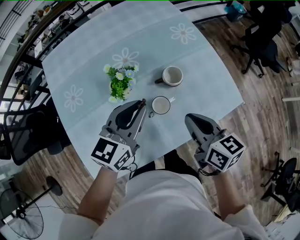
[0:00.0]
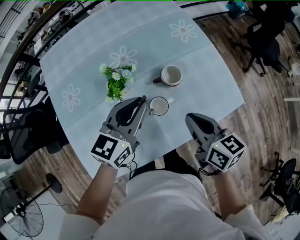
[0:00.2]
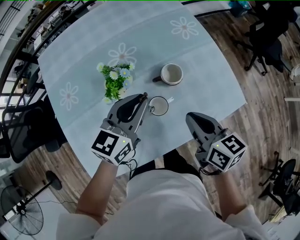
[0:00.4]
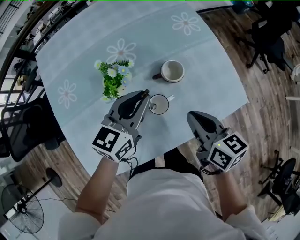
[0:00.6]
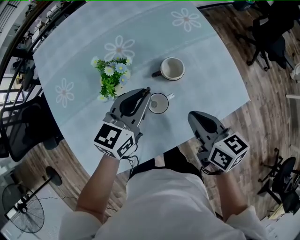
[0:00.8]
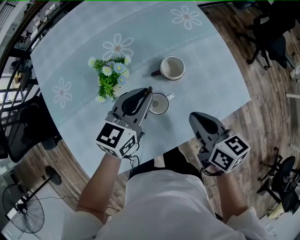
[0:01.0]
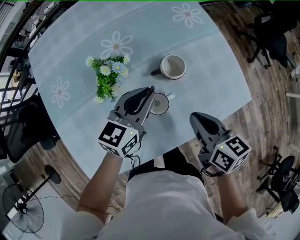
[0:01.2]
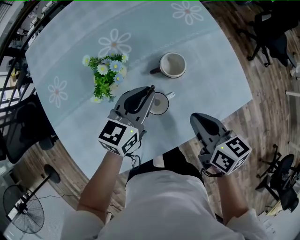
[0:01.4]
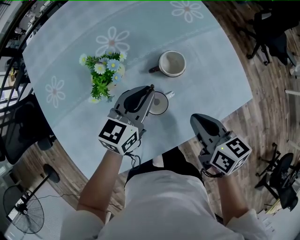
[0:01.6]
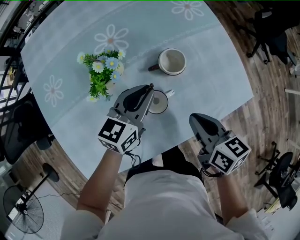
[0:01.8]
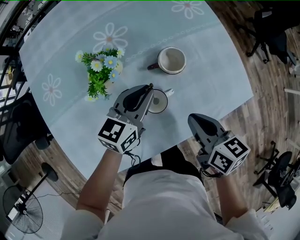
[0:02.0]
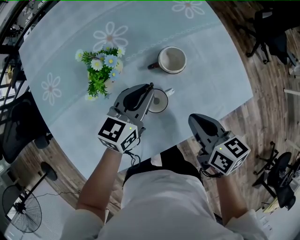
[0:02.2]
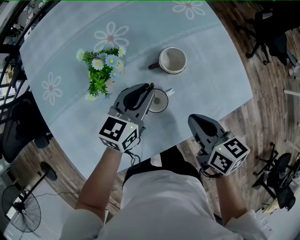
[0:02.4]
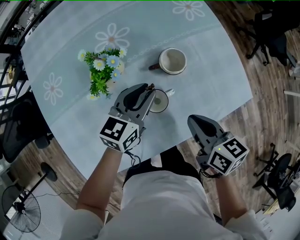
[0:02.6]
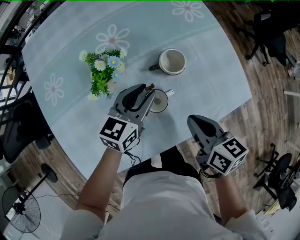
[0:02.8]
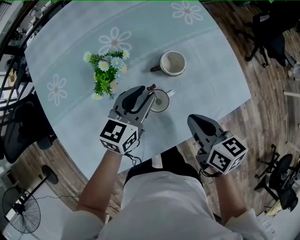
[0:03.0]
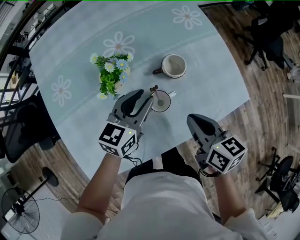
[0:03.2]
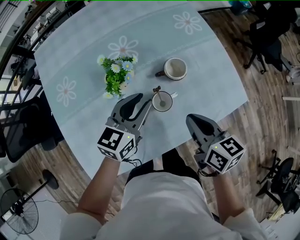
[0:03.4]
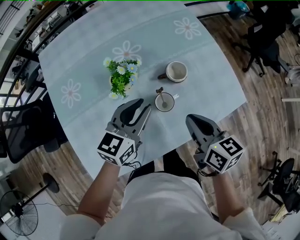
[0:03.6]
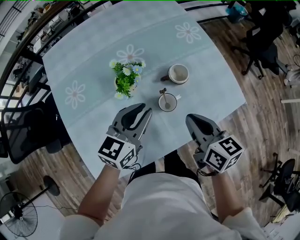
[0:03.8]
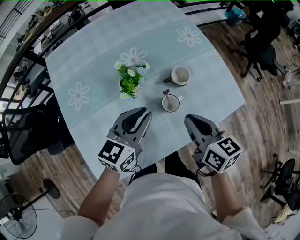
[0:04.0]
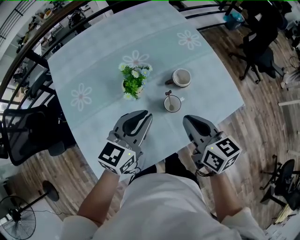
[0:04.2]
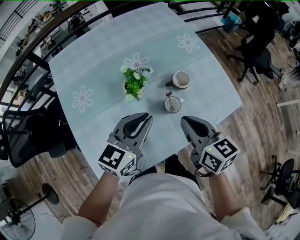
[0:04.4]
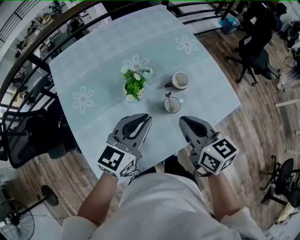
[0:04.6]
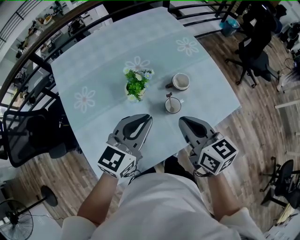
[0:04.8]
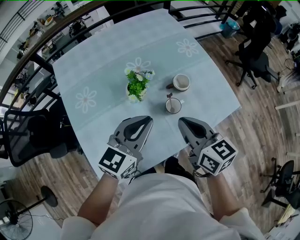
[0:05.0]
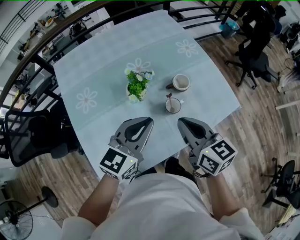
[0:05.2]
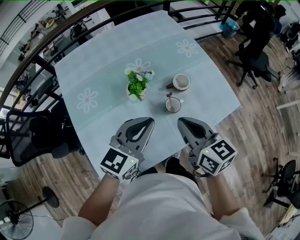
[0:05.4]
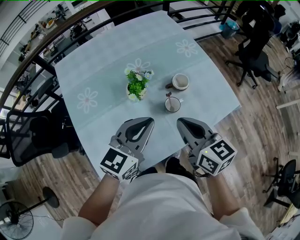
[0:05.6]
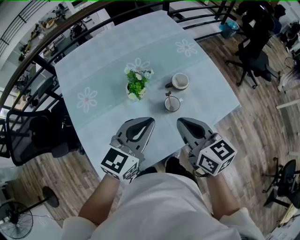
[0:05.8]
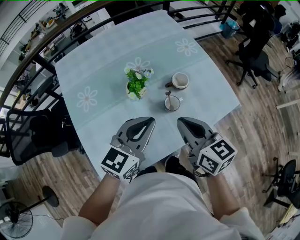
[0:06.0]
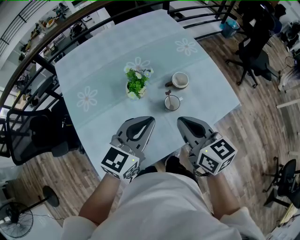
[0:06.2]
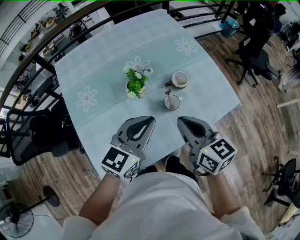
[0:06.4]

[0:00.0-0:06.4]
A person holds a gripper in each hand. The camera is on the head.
0.0 to 1.6 s: The two grippers go about 15 cm downward.
1.6 to 3.2 s: The grippers make only small movements.
3.2 to 4.8 s: The left gripper goes roughly 20 cm upward, backward and to the left, and closes its fingers; the right gripper is displaced upward and to the left by some 20 cm.
4.8 to 6.4 s: The grippers move only a little.

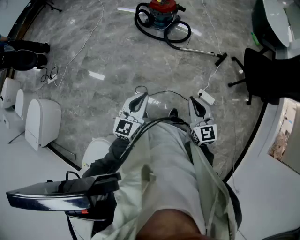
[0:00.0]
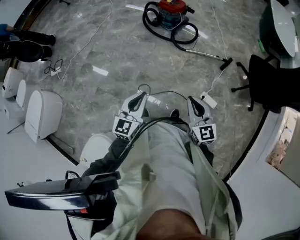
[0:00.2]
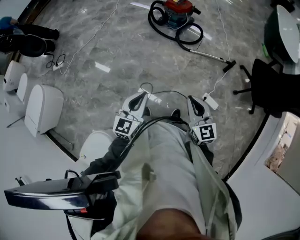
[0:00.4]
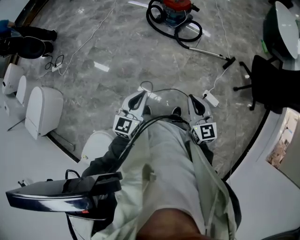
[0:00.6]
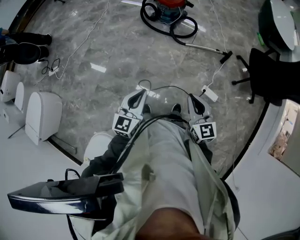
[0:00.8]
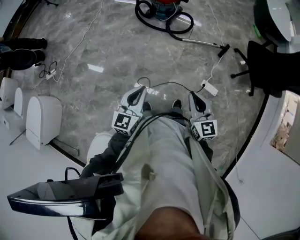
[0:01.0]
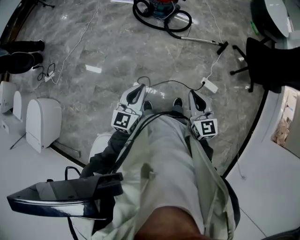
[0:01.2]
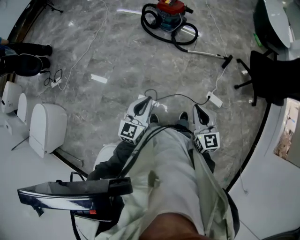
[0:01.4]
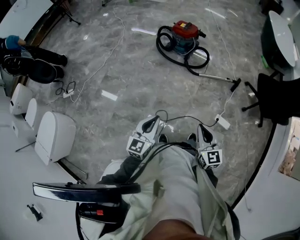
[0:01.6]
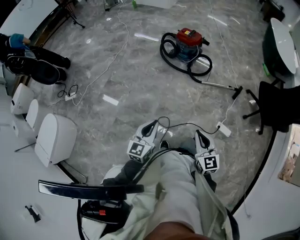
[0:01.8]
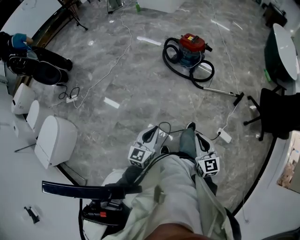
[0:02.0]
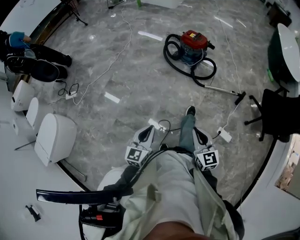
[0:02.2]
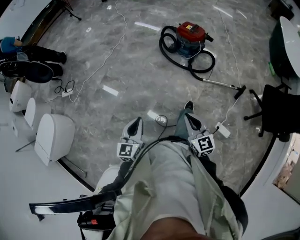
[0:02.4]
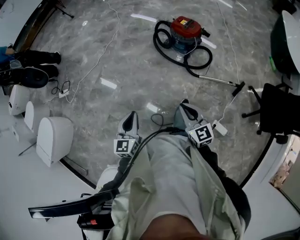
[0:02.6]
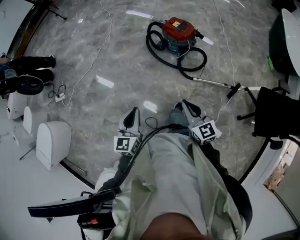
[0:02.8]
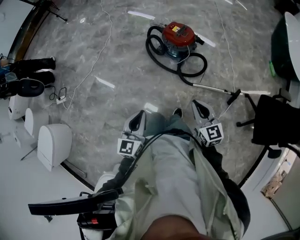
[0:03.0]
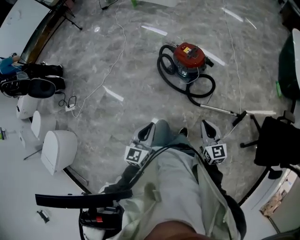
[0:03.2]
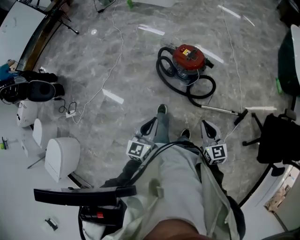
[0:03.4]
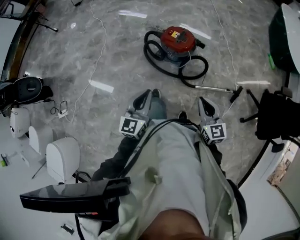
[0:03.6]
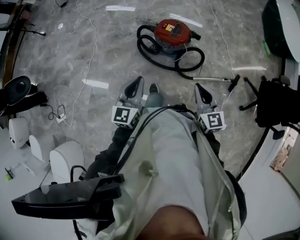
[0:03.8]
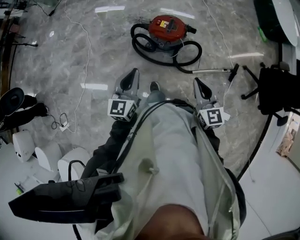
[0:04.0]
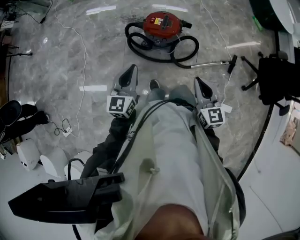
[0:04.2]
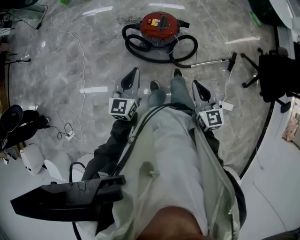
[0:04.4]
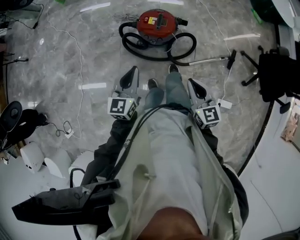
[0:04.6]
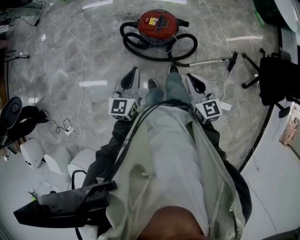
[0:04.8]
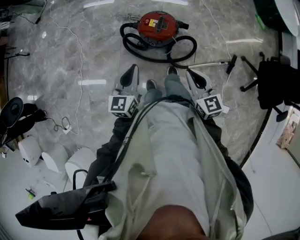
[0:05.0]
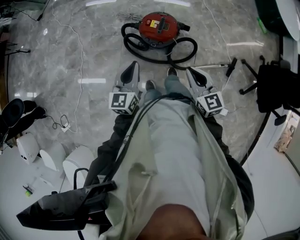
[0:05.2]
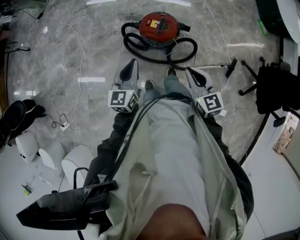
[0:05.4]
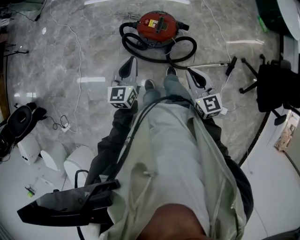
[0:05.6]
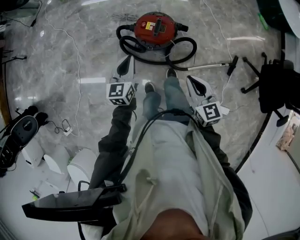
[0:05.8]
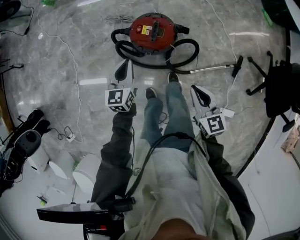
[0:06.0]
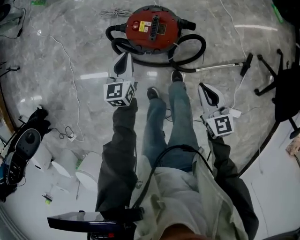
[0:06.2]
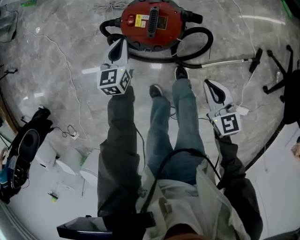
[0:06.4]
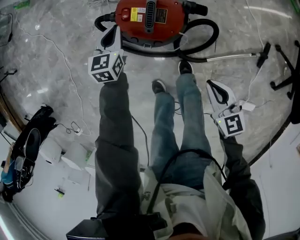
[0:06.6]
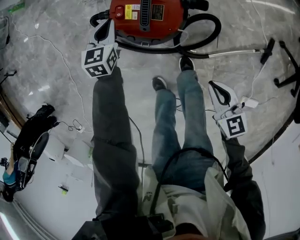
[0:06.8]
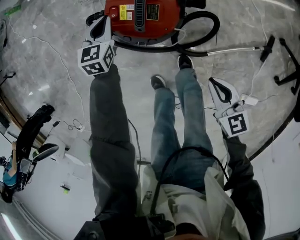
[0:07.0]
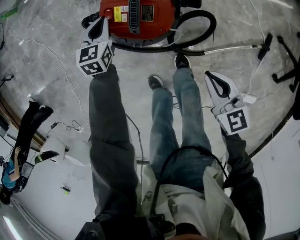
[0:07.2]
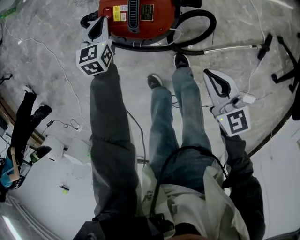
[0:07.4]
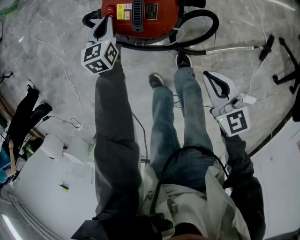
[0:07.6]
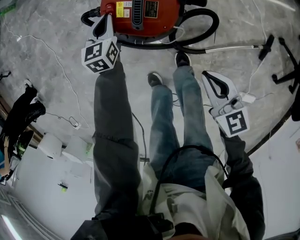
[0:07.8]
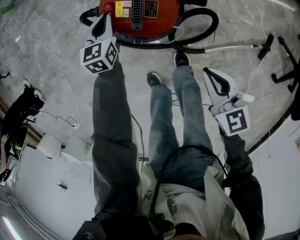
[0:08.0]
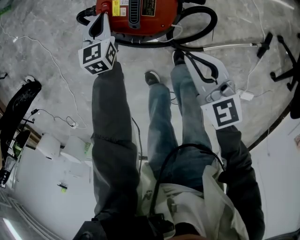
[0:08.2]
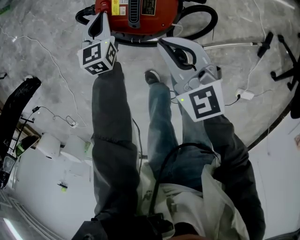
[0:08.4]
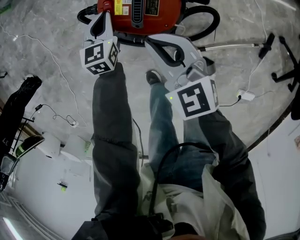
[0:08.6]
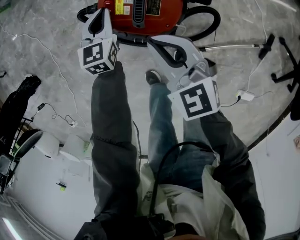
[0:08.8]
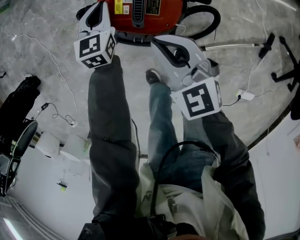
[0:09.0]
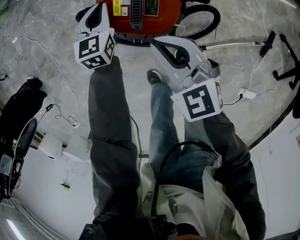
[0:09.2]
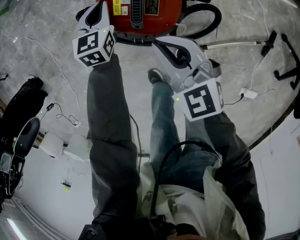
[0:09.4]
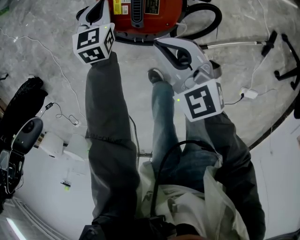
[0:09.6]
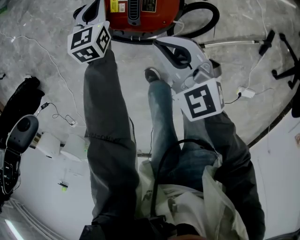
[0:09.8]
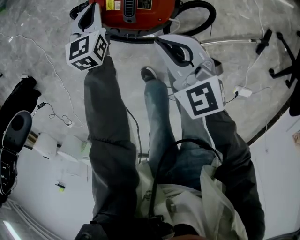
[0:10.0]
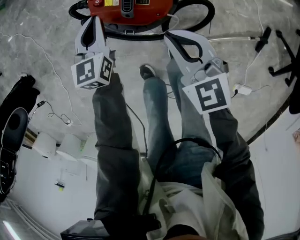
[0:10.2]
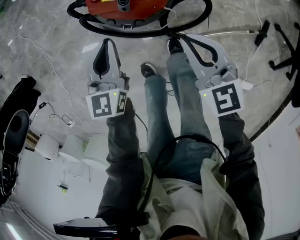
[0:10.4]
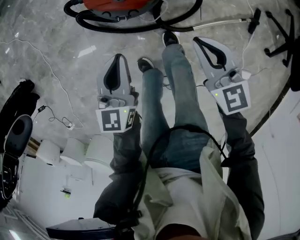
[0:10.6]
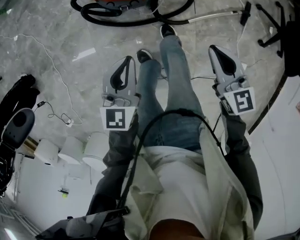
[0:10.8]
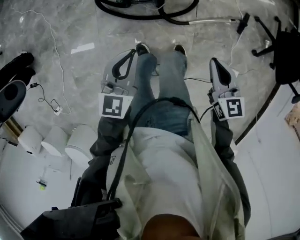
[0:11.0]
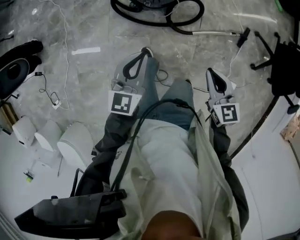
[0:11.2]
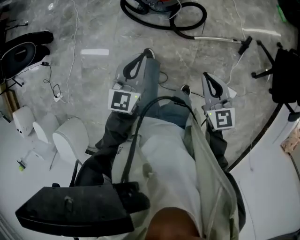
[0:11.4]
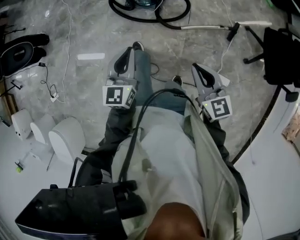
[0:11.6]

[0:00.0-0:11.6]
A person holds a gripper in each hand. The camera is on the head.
0.0 to 1.4 s: The two grippers go some 10 cm to the left.
1.4 to 2.8 s: Both grippers travel together forward, approximately 35 cm. The left gripper turns by approximately 20 degrees.
2.8 to 4.4 s: The right gripper shifts by about 25 cm, and turns by about 30 degrees. The left gripper ends up approximately 40 cm from where it was, and turns by roughly 30 degrees.
4.4 to 5.8 s: The grippers both shift forward and downward by approximately 15 cm.
5.8 to 7.2 s: The left gripper travels downward and forward by roughly 40 cm, and rotates approximately 20 degrees; the right gripper is displaced downward by approximately 30 cm.
7.2 to 8.8 s: The right gripper heads forward and to the left, covering about 20 cm, and swivels about 20 degrees.
8.8 to 10.2 s: The right gripper ends up about 5 cm from where it was, while the left gripper goes approximately 5 cm backward.
10.2 to 11.6 s: The two grippers travel together, backward, some 50 cm. Both grippers move upward, approximately 35 cm.

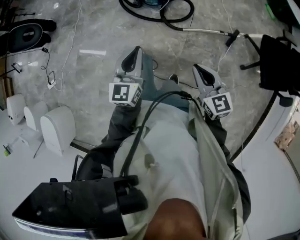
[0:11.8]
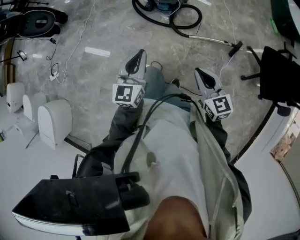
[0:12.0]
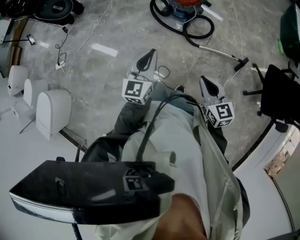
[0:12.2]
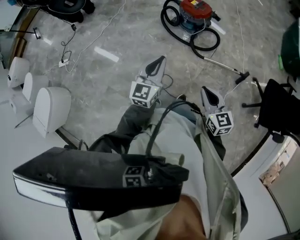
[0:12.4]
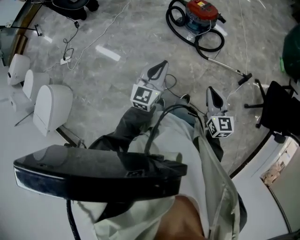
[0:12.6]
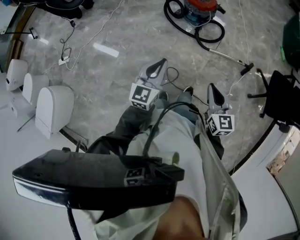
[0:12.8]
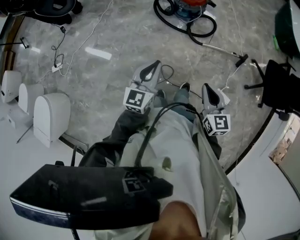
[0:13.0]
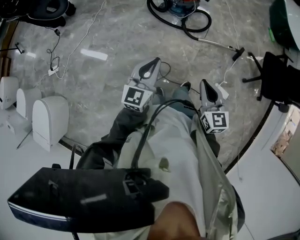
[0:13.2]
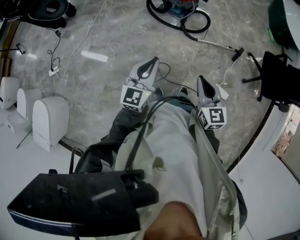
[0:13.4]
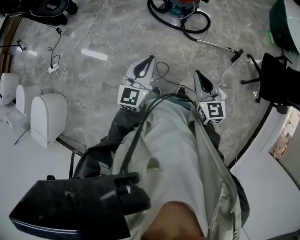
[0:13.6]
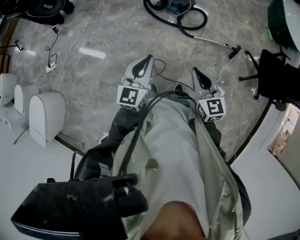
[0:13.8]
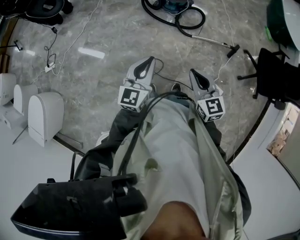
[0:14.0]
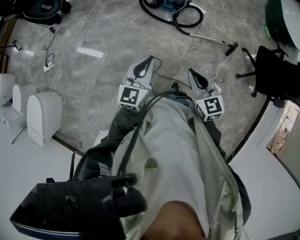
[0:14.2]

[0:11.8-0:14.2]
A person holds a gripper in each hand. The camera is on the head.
11.8 to 13.0 s: The grippers both shift to the left and backward by roughly 20 cm.
13.0 to 14.2 s: The left gripper moves to the right and backward, about 10 cm.

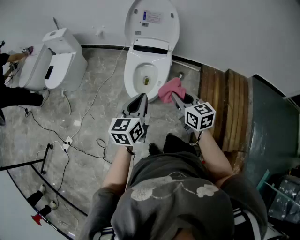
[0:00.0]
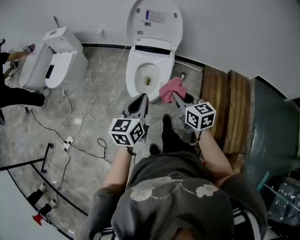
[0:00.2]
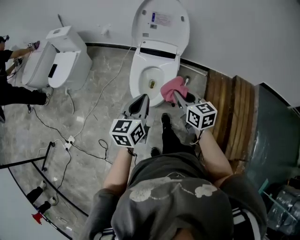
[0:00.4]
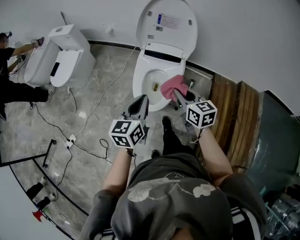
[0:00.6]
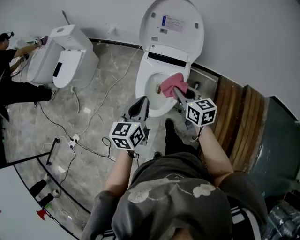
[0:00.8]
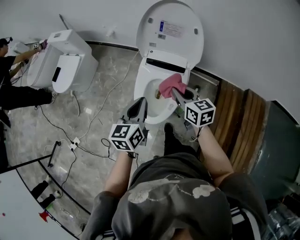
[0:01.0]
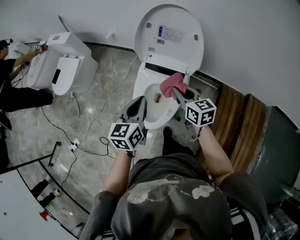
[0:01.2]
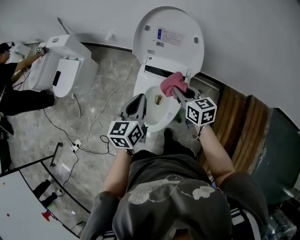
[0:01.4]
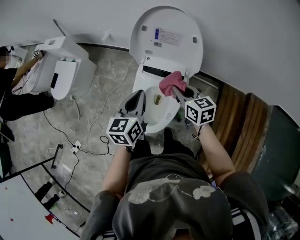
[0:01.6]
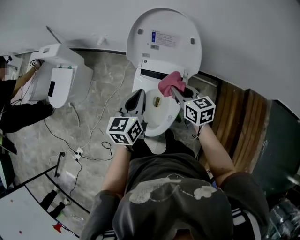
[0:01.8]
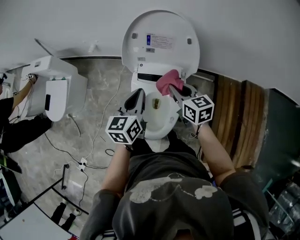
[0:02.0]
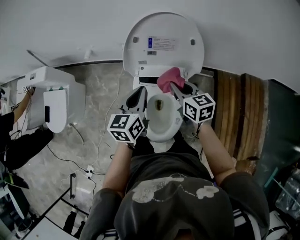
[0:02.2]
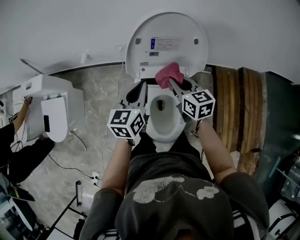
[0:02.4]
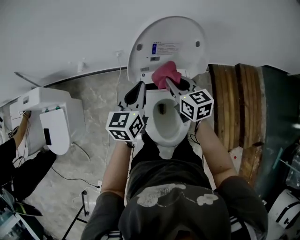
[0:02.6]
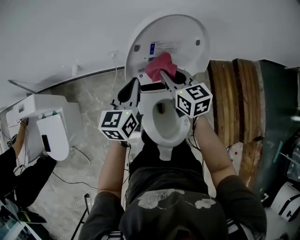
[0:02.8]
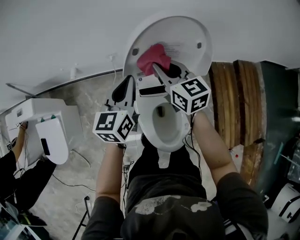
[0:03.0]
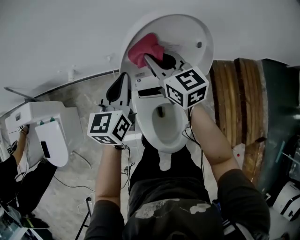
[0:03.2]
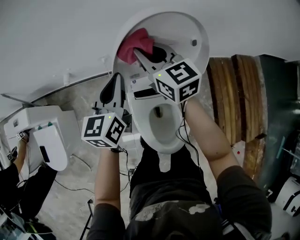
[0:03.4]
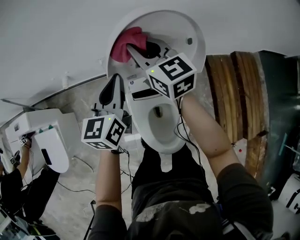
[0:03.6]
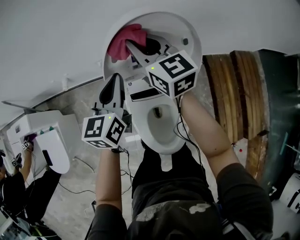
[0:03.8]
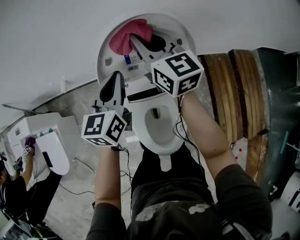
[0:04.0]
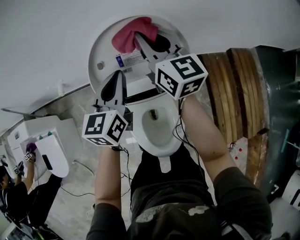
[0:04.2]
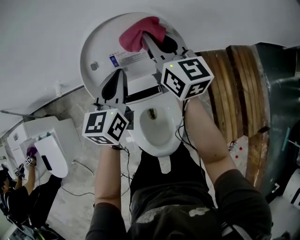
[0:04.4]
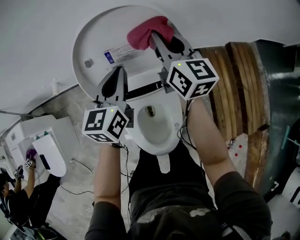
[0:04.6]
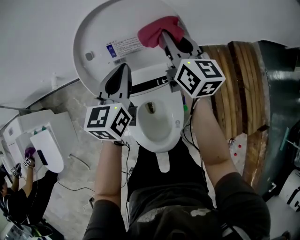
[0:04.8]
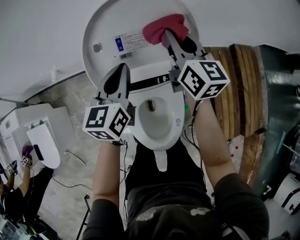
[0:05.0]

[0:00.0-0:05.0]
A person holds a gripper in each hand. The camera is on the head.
0.0 to 1.6 s: The two grippers go some 35 cm forward.
1.6 to 3.4 s: The right gripper moves roughly 30 cm, and rotates approximately 30 degrees; the left gripper shifts by about 30 cm, and rotates some 20 degrees.
3.4 to 5.0 s: The left gripper moves to the right, approximately 10 cm, while the right gripper moves to the right, roughly 15 cm, and turns by approximately 20 degrees.
